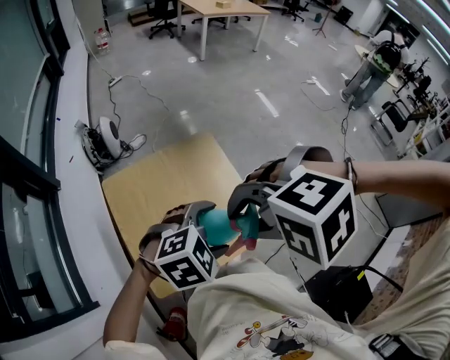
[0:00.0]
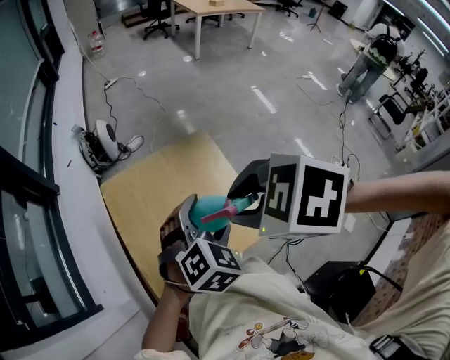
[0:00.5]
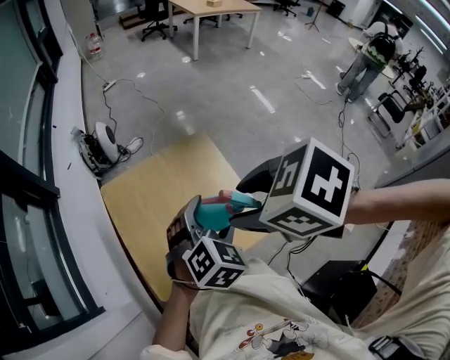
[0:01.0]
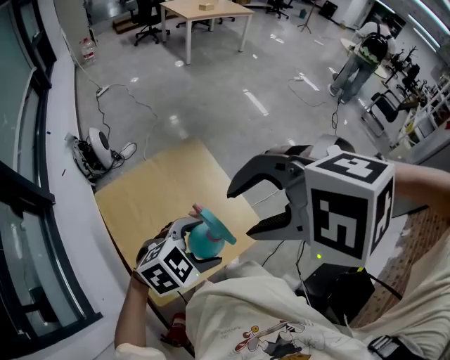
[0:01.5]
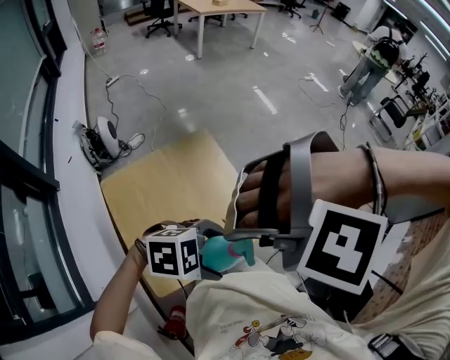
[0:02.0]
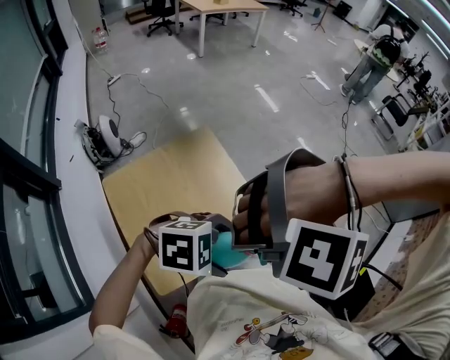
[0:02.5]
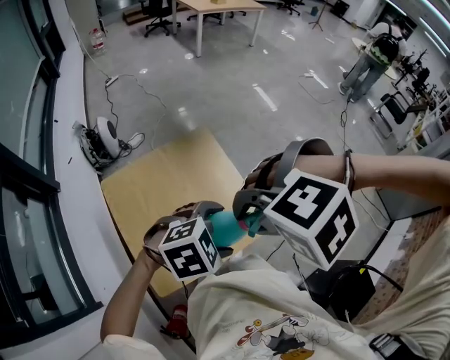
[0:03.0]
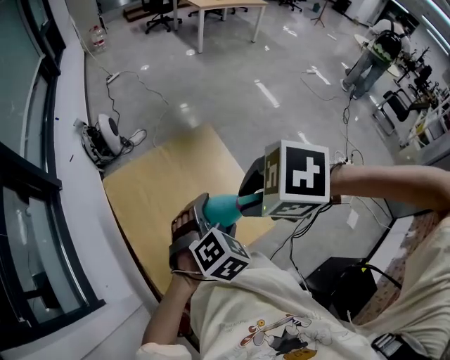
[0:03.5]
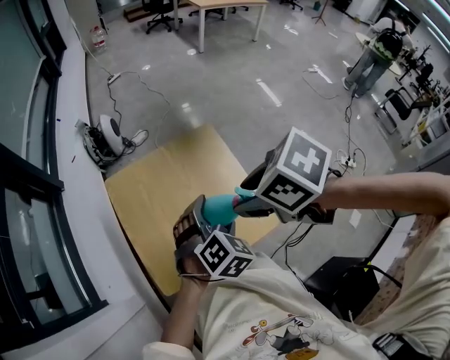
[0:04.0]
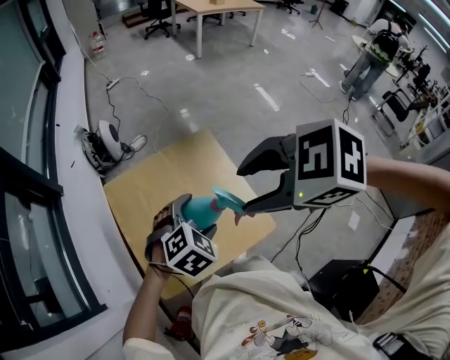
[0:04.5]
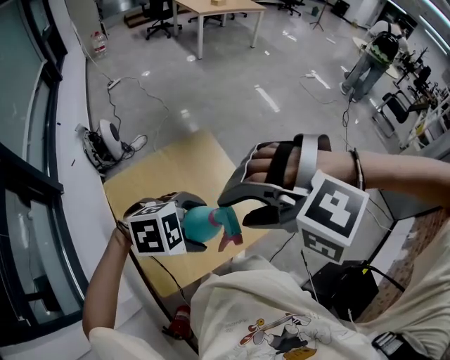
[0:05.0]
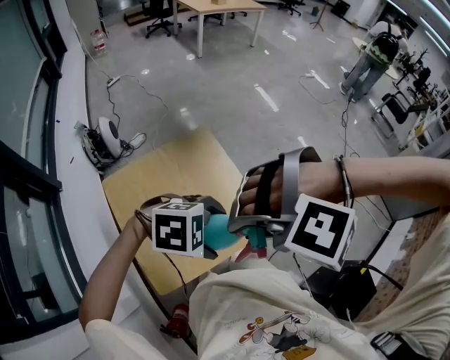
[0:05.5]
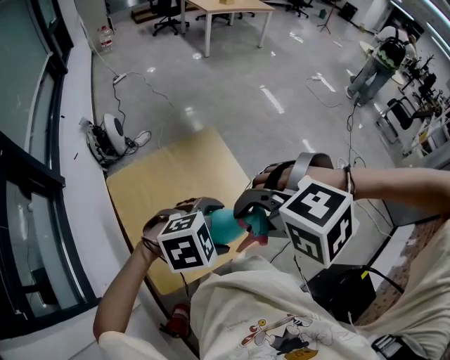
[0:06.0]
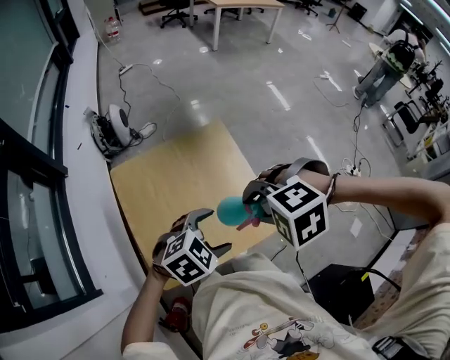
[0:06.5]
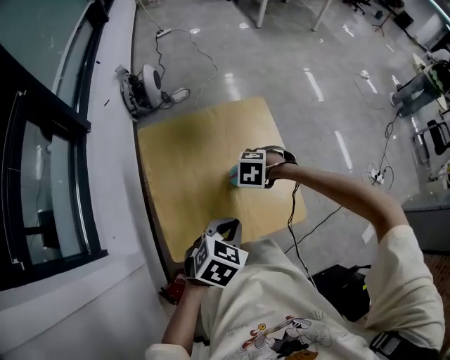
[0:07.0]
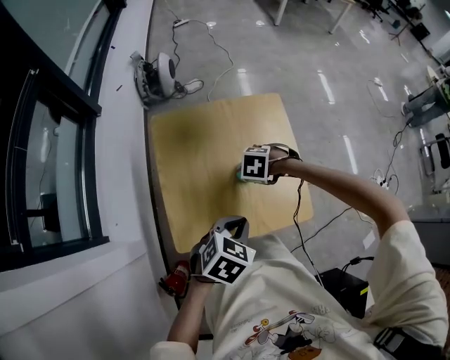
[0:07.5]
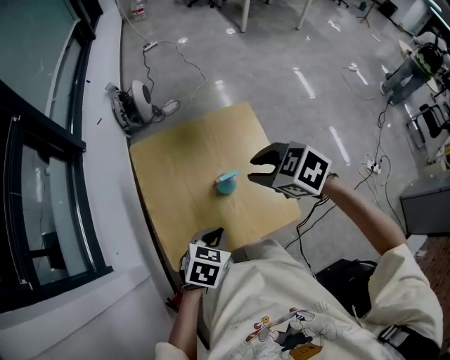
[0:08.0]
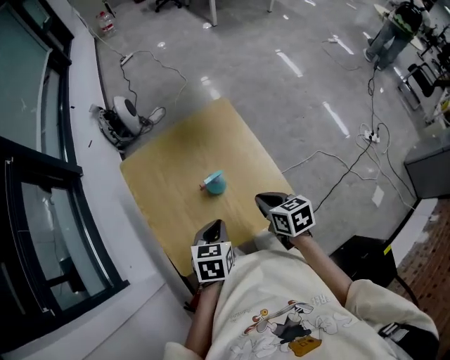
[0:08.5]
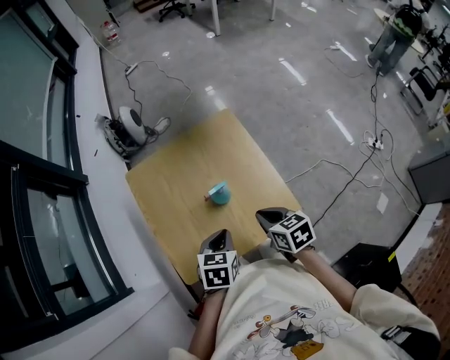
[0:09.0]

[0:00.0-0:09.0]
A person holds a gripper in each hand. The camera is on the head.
0:00.0 to 0:02.0: The left gripper ends up about 10 cm from where it was, and turns by some 30 degrees; the right gripper moves approximately 5 cm, rotates approximately 30 degrees, and opens.
0:02.0 to 0:04.5: The left gripper ends up about 15 cm from where it was, and swivels about 60 degrees. The right gripper goes downward and returns, approximately 10 cm each way, rotates around the line of its fingers by about 70 degrees, clockwise from behind, and closes, then opens again.
0:04.5 to 0:07.0: The right gripper moves downward, approximately 35 cm, points its fingers some 30 degrees further downward, and closes; the left gripper moves roughly 10 cm, turns by approximately 40 degrees, and closes up.
0:07.0 to 0:09.0: The left gripper ends up some 5 cm from where it was; the right gripper goes upward and returns, about 20 cm each way, rolls clockwise, seen from behind, by some 70 degrees, and closes up.

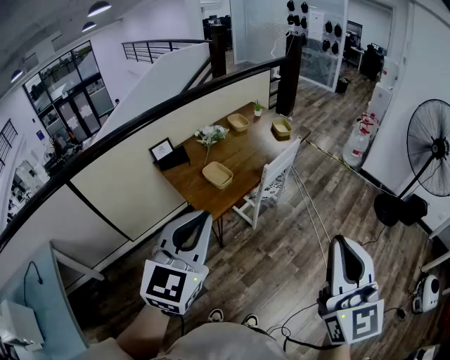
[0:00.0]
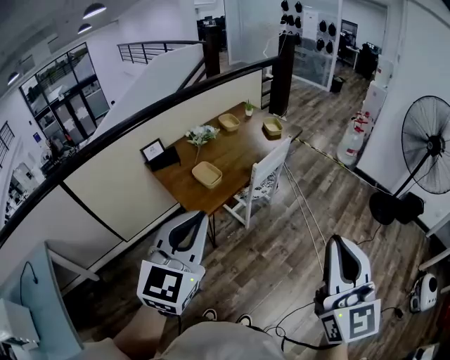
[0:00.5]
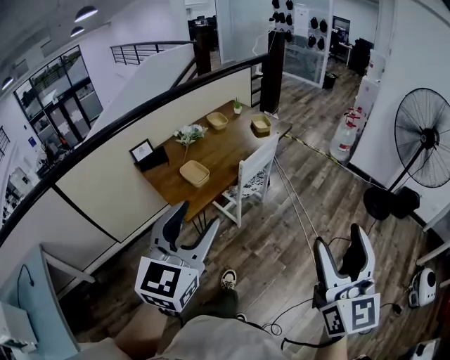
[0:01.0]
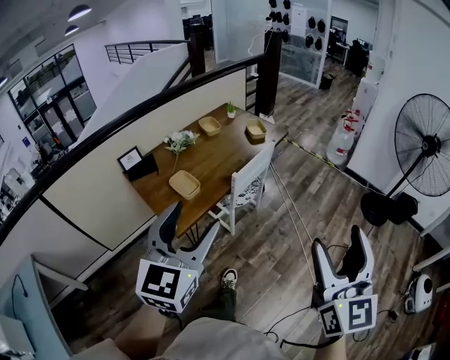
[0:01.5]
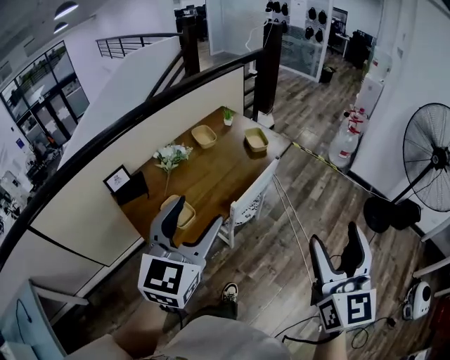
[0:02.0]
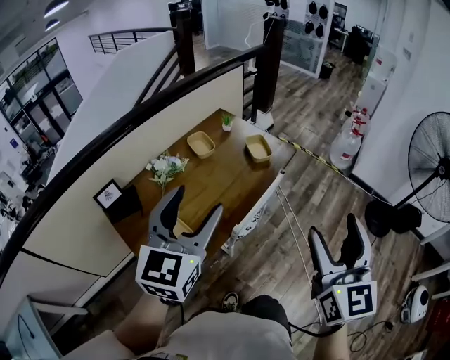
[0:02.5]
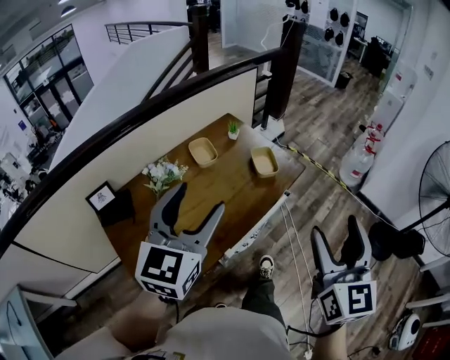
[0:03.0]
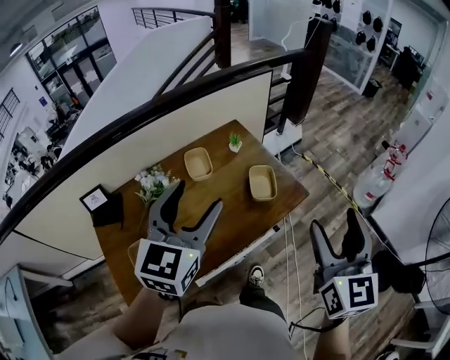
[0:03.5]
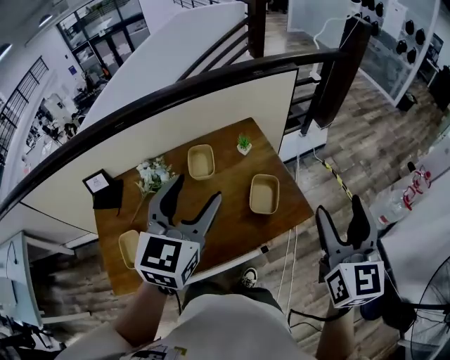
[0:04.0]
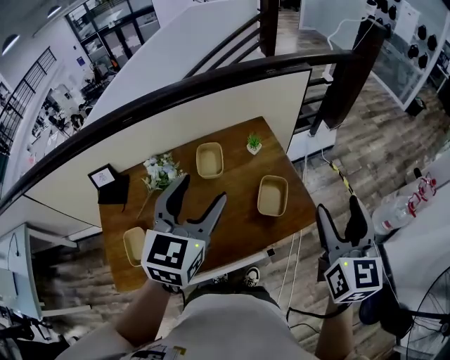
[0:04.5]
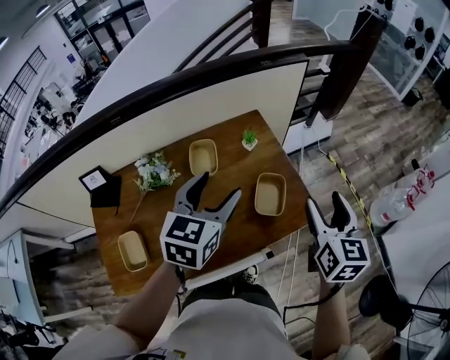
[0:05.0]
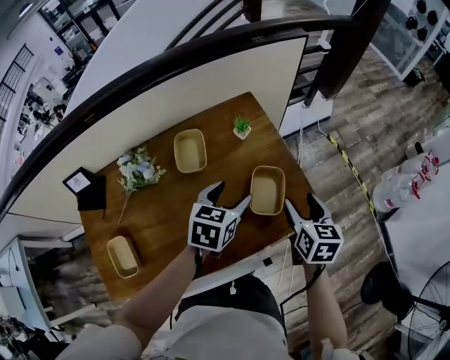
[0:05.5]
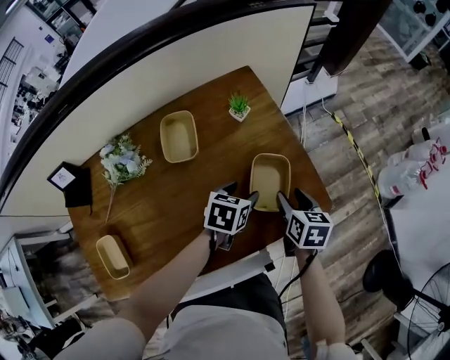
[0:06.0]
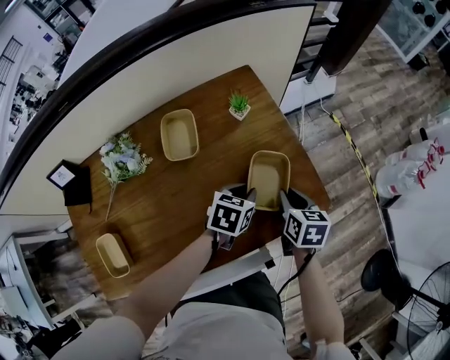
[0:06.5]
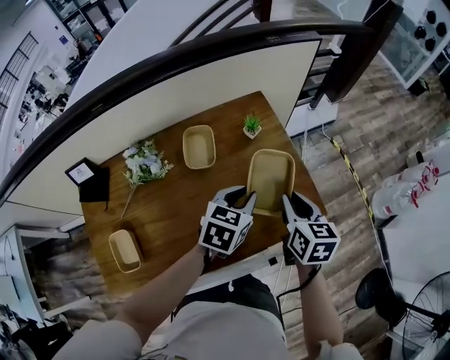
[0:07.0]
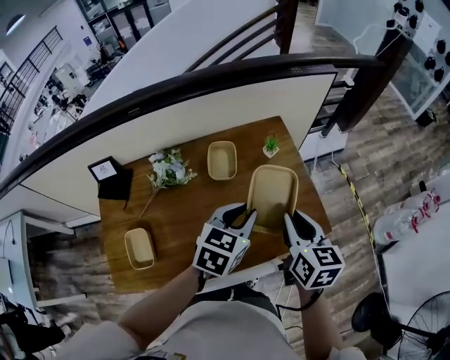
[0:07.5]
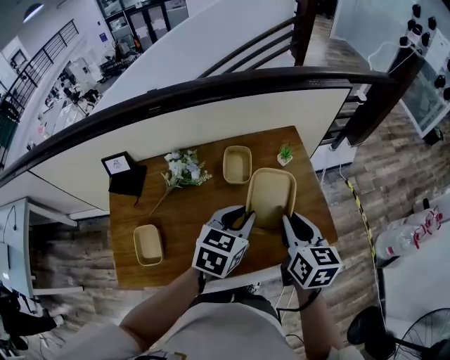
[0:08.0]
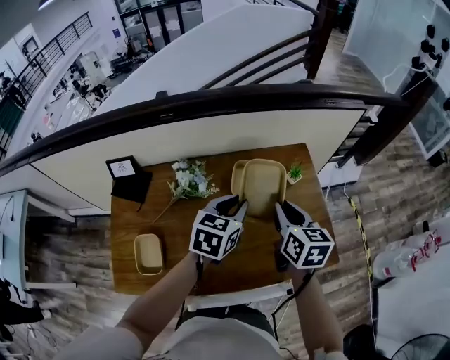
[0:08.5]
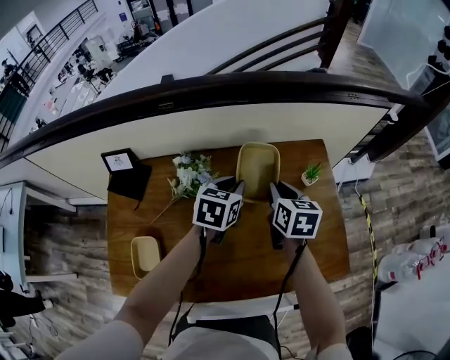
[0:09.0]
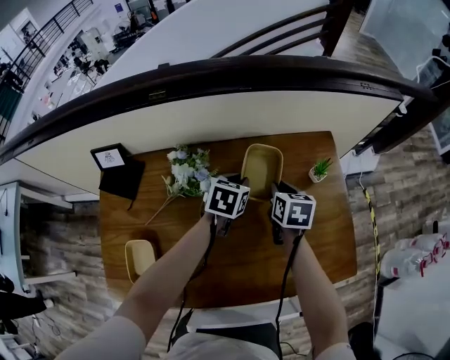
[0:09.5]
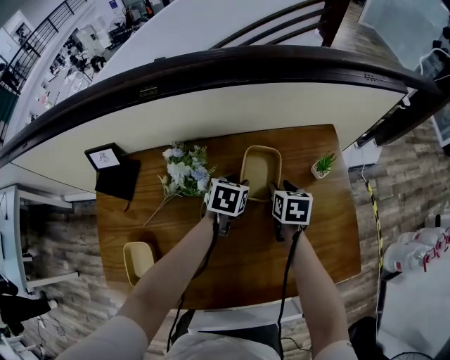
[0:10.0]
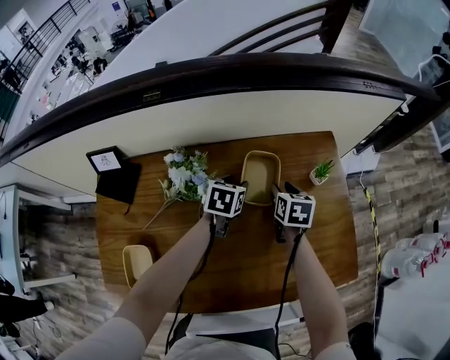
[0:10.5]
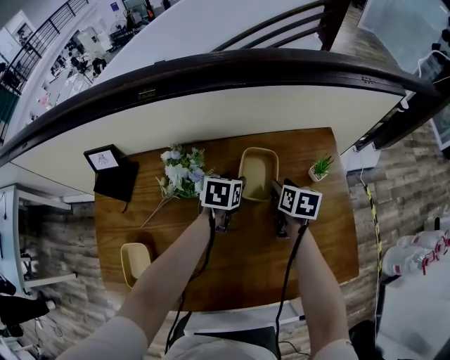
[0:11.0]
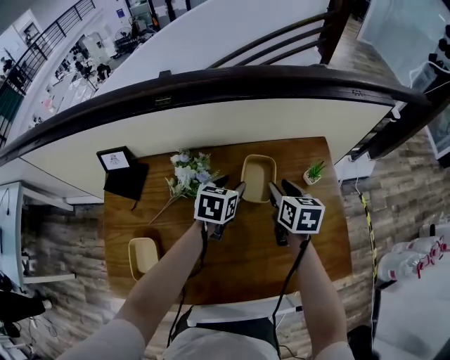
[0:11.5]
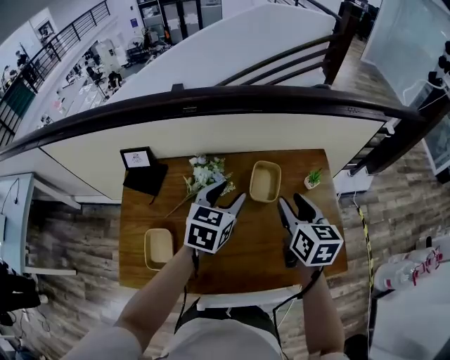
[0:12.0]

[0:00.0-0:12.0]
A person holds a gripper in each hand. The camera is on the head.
0:00.0 to 0:02.0: Both grippers move forward, some 30 cm. The left gripper opens its fingers. Meanwhile the right gripper opens.
0:02.0 to 0:04.0: Both grippers are carried approximately 60 cm. The left gripper swivels approximately 30 degrees, while the right gripper rotates about 30 degrees.
0:04.0 to 0:06.0: Both grippers travel together downward, roughly 40 cm. The left gripper tips its fingers downward by some 40 degrees. The right gripper tilts its fingers approximately 40 degrees downward.
0:06.0 to 0:08.0: The grippers both shift upward and to the left by approximately 30 cm. The left gripper rotates roughly 30 degrees, and closes its fingers, while the right gripper rotates about 30 degrees, and closes its fingers.
0:08.0 to 0:10.0: The left gripper heads downward, forward and to the left, covering some 35 cm, and turns by approximately 20 degrees, while the right gripper moves downward and forward, about 35 cm, and changes its angle by about 20 degrees.
0:10.0 to 0:12.0: The grippers both shift upward and backward by some 30 cm. The right gripper rotates some 30 degrees, while the left gripper turns by approximately 20 degrees.

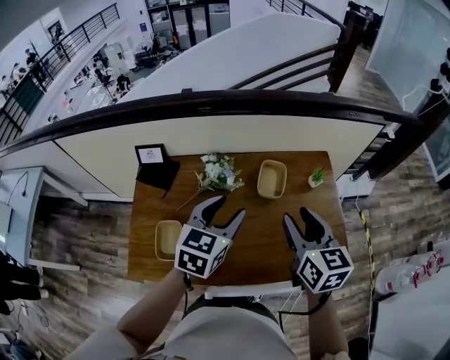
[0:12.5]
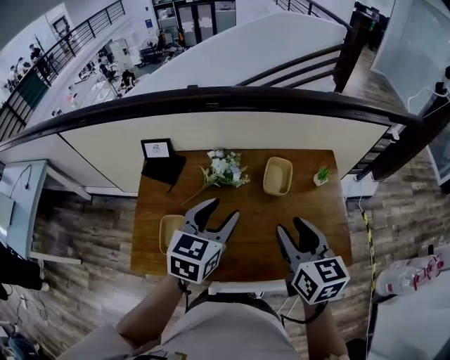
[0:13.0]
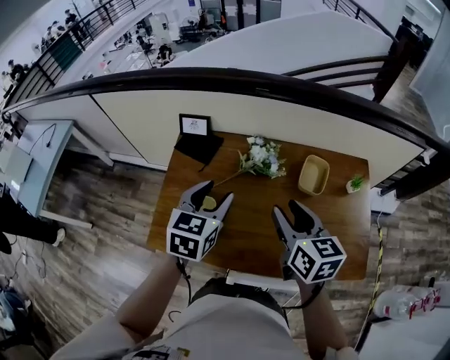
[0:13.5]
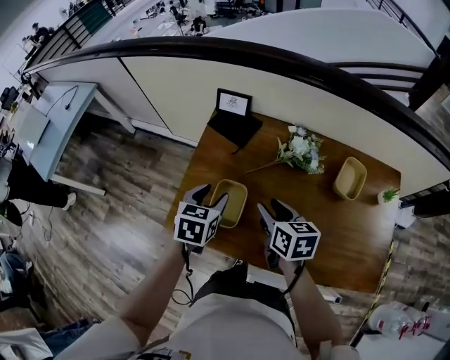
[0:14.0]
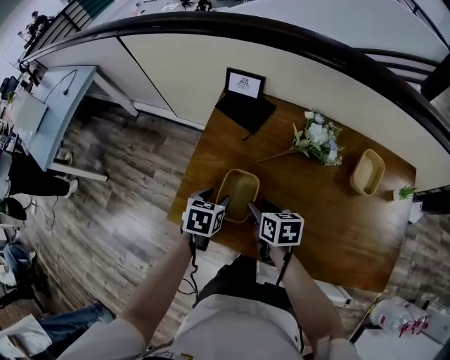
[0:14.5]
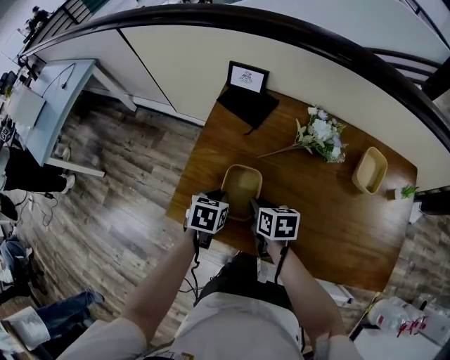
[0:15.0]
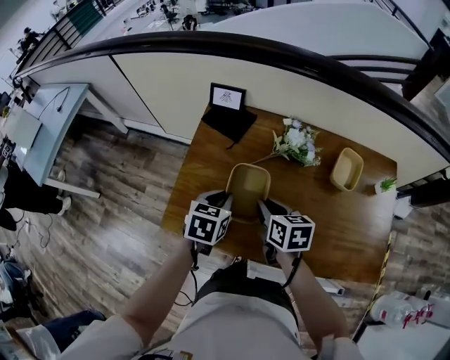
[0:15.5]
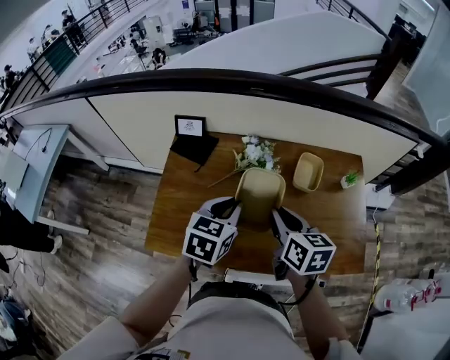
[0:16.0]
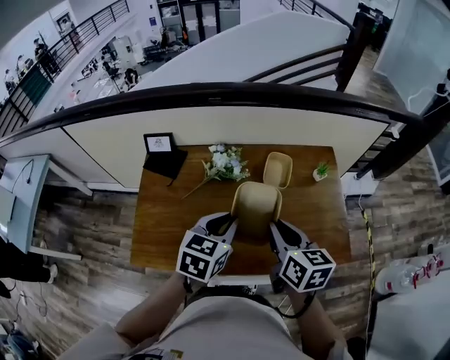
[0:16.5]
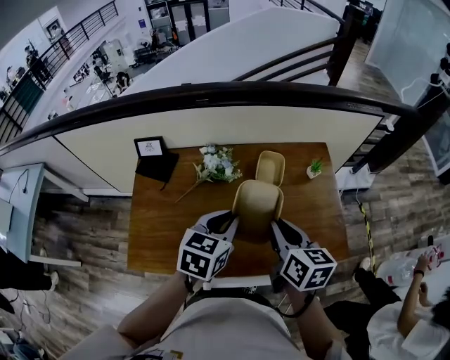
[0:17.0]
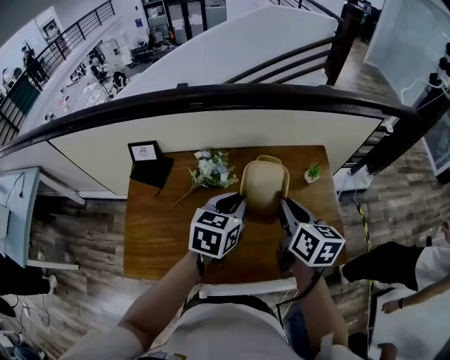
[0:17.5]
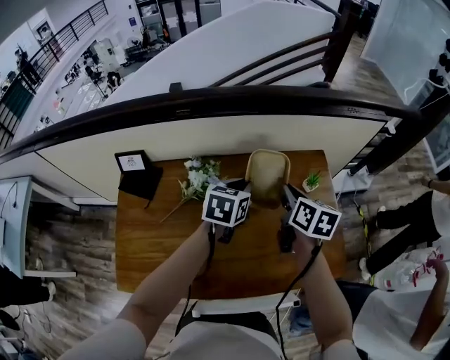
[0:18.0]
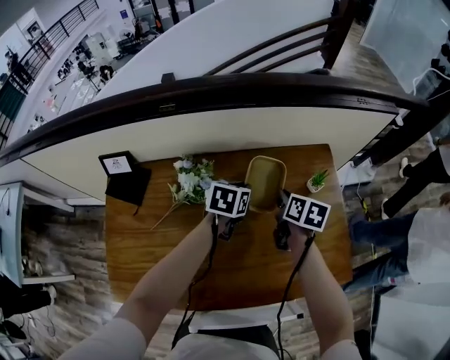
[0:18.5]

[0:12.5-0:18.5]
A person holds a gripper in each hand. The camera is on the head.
0:12.5 to 0:14.5: The right gripper moves some 50 cm, and changes its angle by roughly 50 degrees, while the left gripper ends up approximately 40 cm from where it was, and tilts its fingers about 30 degrees downward.
0:14.5 to 0:16.5: The right gripper changes place by about 40 cm, rotates about 40 degrees, and closes its fingers; the left gripper moves some 40 cm, rotates about 40 degrees, and closes its fingers.
0:16.5 to 0:18.5: The two grippers go approximately 35 cm forward and downward. The right gripper changes its angle by about 30 degrees.
